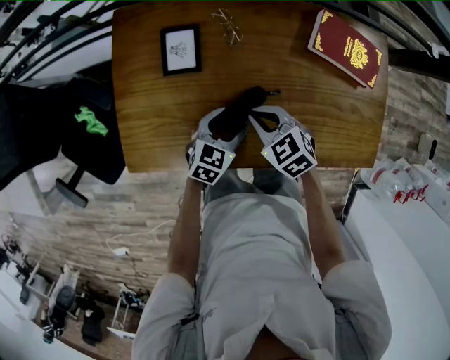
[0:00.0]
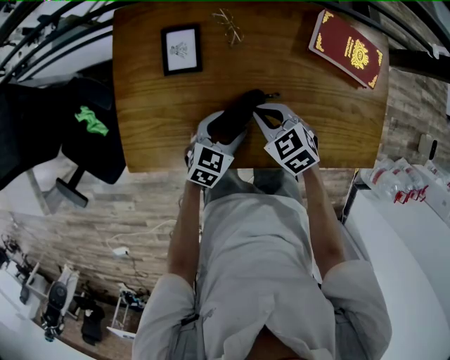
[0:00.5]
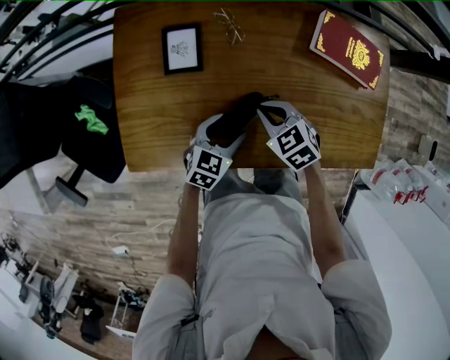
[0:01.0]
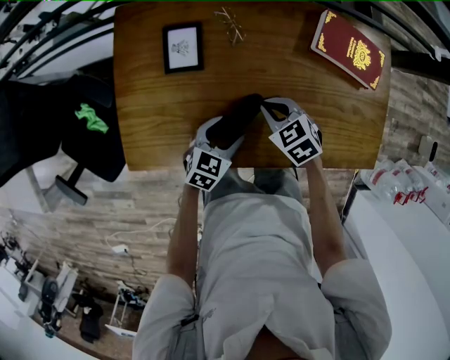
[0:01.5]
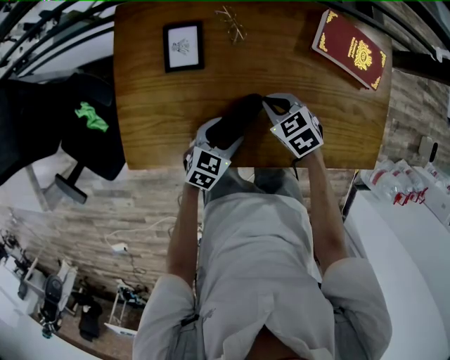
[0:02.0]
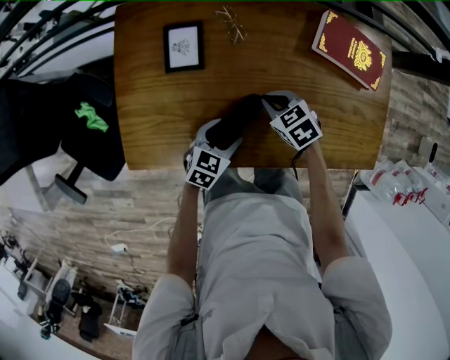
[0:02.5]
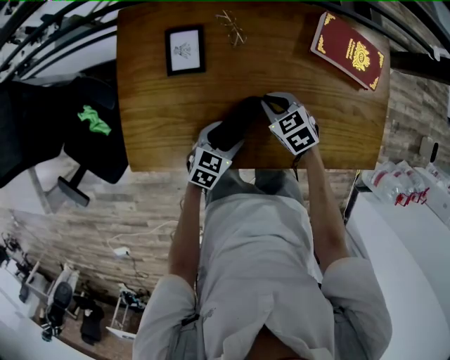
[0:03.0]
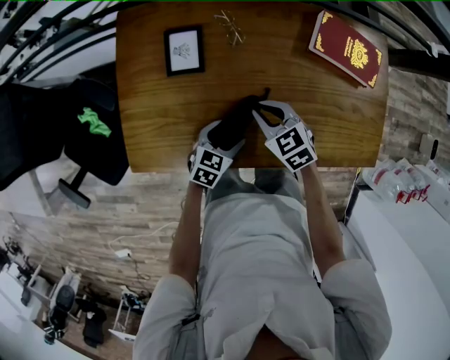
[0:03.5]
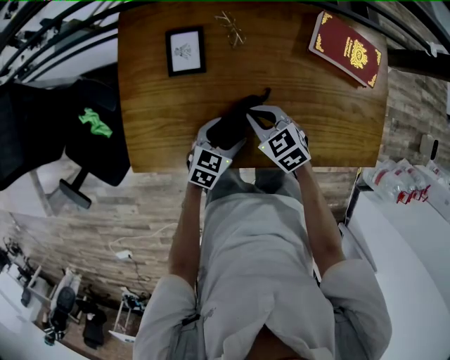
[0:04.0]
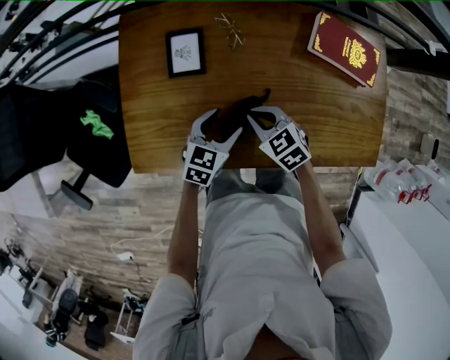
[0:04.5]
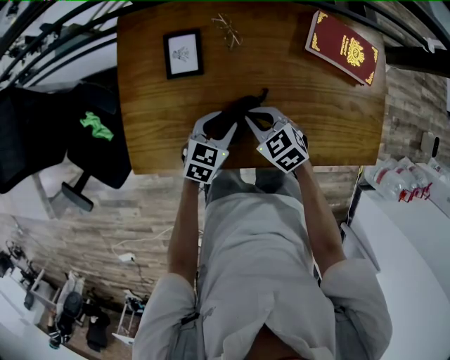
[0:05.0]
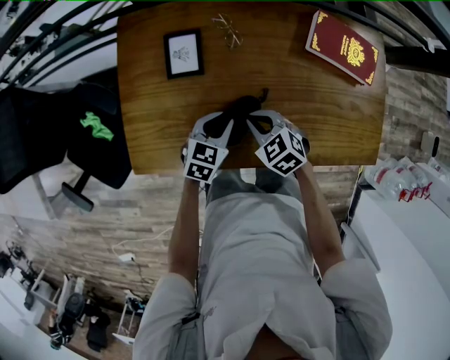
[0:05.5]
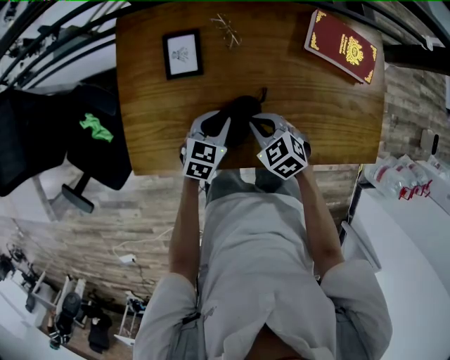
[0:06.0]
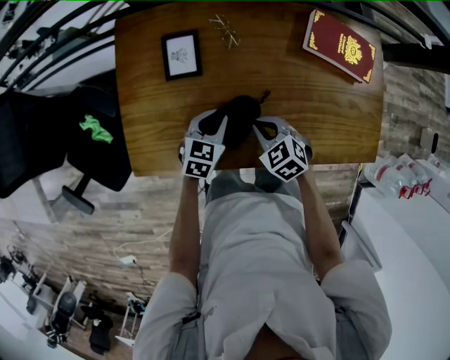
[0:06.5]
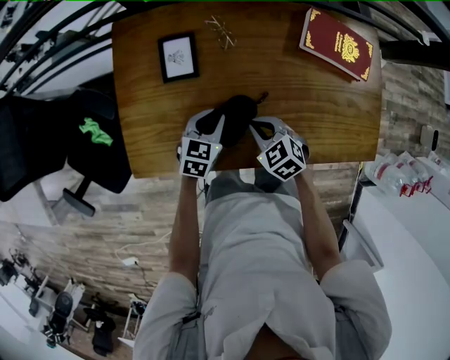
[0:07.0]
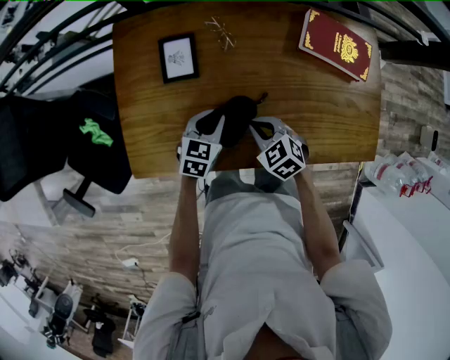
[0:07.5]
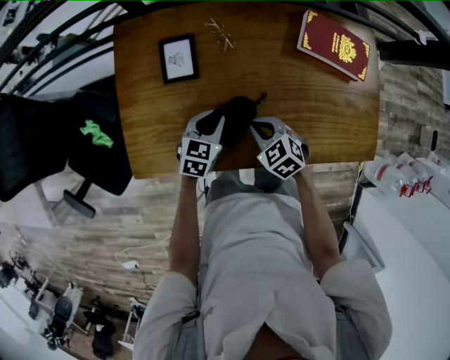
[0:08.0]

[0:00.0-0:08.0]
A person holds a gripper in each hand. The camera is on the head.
0:00.0 to 0:02.0: The right gripper changes place by roughly 5 cm.
0:02.0 to 0:04.0: The right gripper shifts some 5 cm to the left.
0:04.0 to 0:06.0: The left gripper shifts by some 5 cm, and closes up.
0:06.0 to 0:08.0: There are only small adjustments of the grippers.

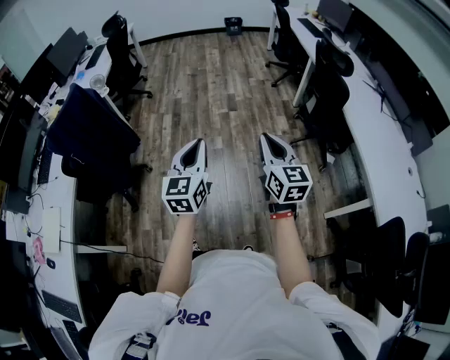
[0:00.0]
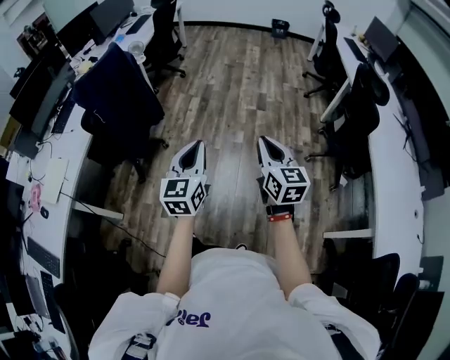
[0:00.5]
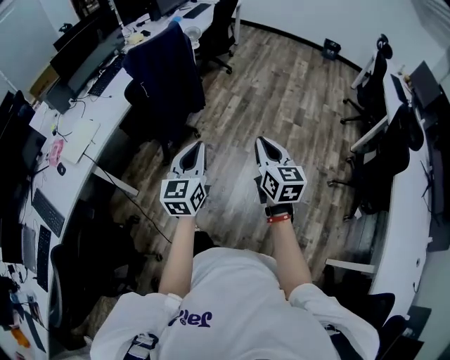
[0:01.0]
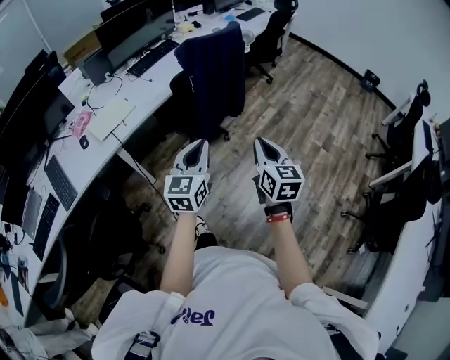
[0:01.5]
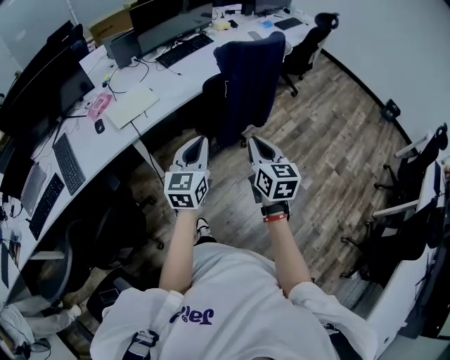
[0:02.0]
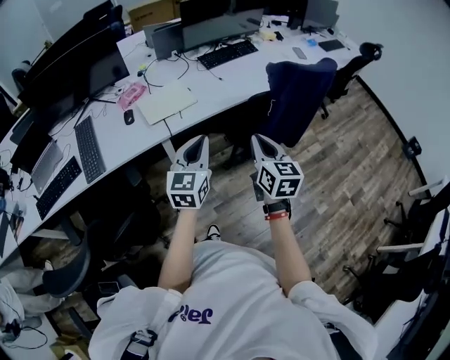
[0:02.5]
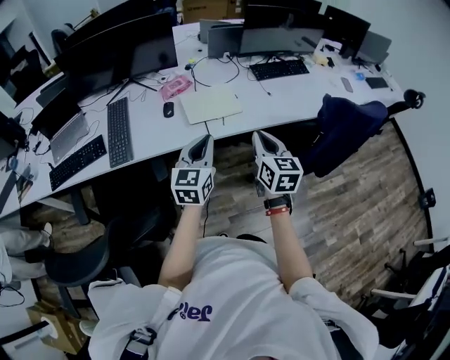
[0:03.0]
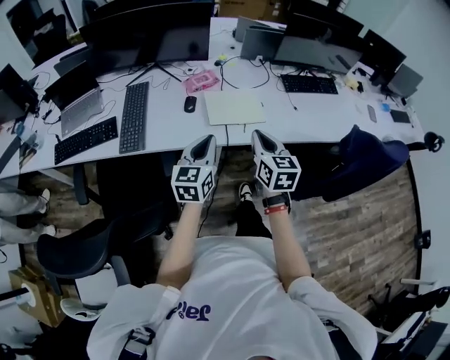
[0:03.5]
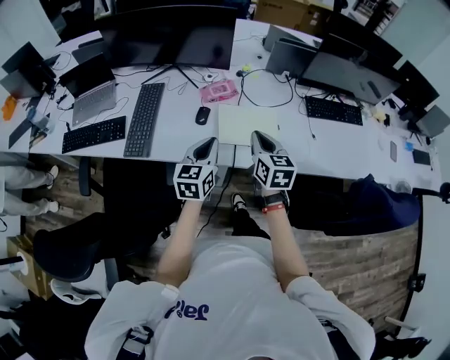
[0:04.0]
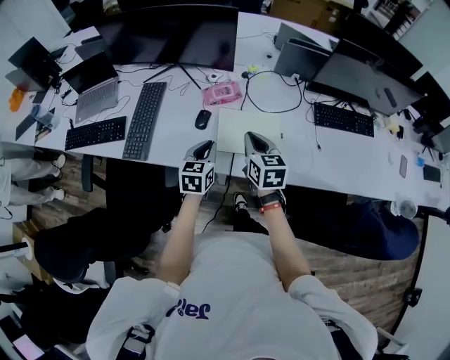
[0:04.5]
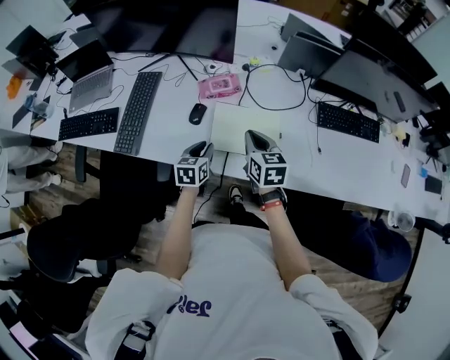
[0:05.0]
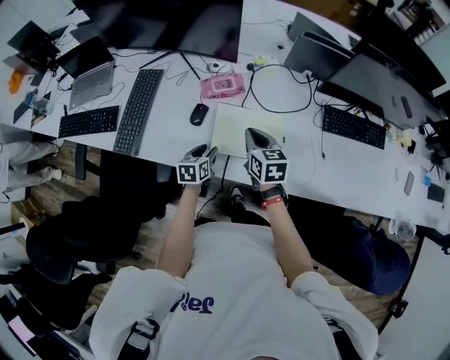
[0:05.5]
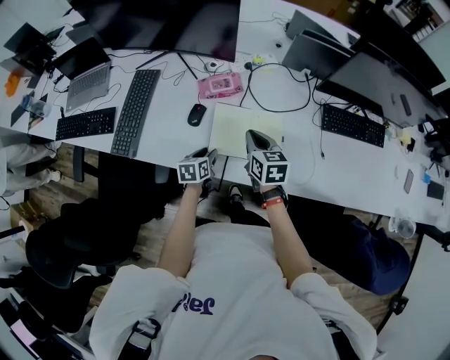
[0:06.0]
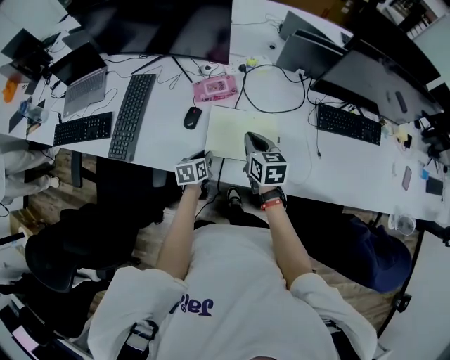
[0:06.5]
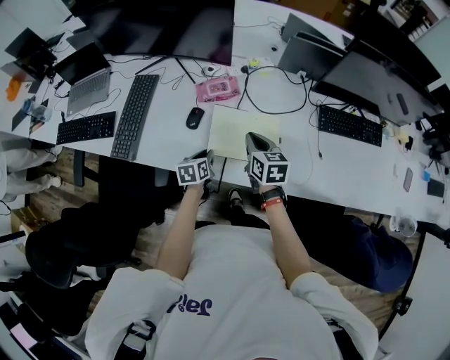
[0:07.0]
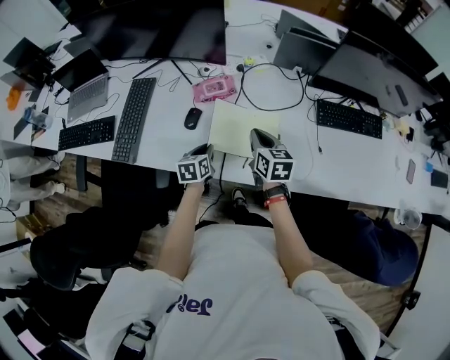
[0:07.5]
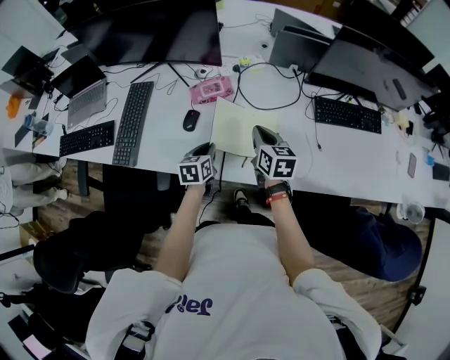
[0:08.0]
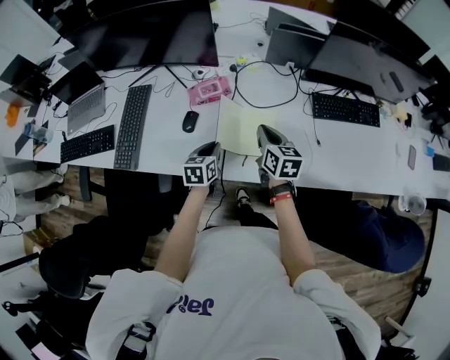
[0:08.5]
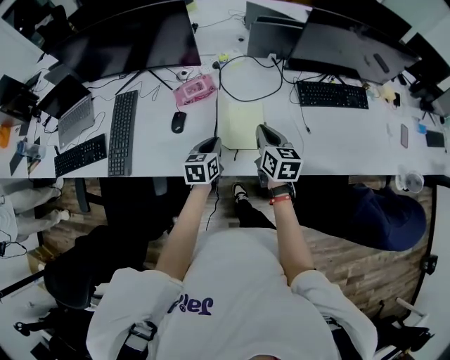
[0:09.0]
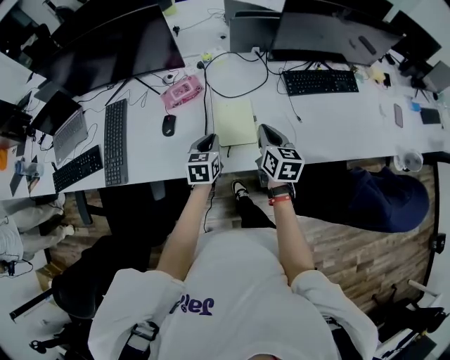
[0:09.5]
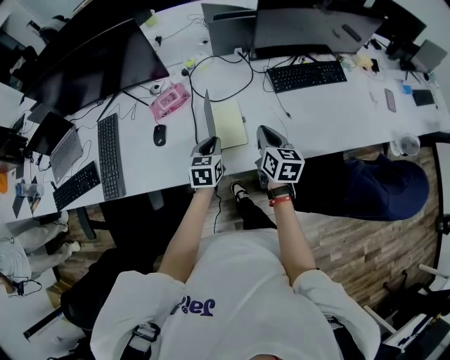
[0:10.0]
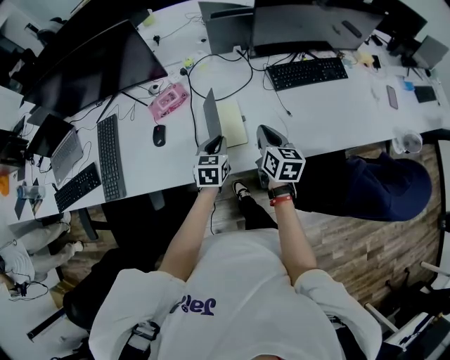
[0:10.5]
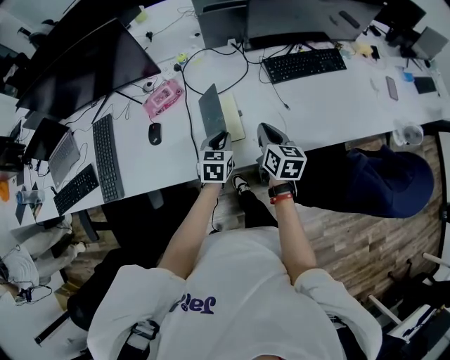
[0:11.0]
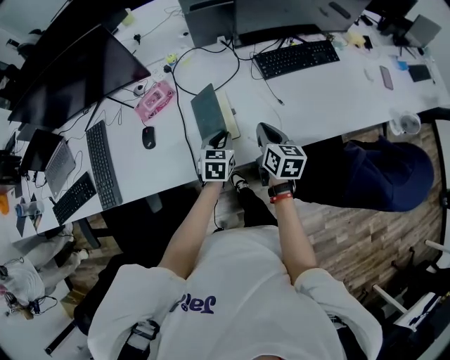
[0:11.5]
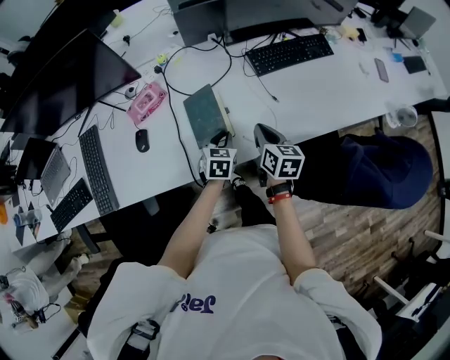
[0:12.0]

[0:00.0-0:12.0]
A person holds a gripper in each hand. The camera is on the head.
0:00.0 to 0:02.0: Both grippers are carried some 60 cm. The right gripper rotates approximately 50 degrees. Meanwhile the left gripper swivels roughly 50 degrees.
0:02.0 to 0:04.0: The pair of grippers is taken about 60 cm. The right gripper changes its angle by about 40 degrees. Meanwhile the left gripper swivels approximately 40 degrees.
0:04.0 to 0:06.0: The left gripper travels downward and forward by about 30 cm, changes its angle by roughly 40 degrees, and opens its fingers. The right gripper shifts about 20 cm forward and downward.
0:06.0 to 0:08.0: The left gripper travels upward by roughly 5 cm, and closes up. Meanwhile the right gripper goes about 5 cm to the right.
0:08.0 to 0:10.0: The right gripper shifts roughly 15 cm to the right and backward, and rotates some 20 degrees; the left gripper travels to the right by roughly 15 cm, and changes its angle by about 20 degrees.
0:10.0 to 0:12.0: The right gripper goes approximately 5 cm downward; the left gripper heads to the right and downward, covering some 10 cm.

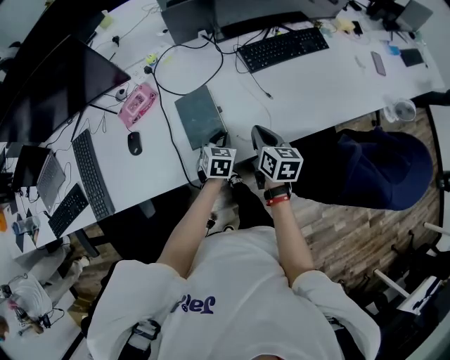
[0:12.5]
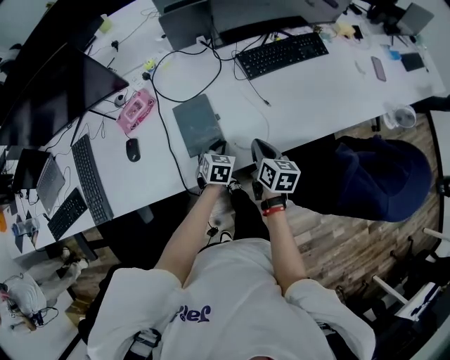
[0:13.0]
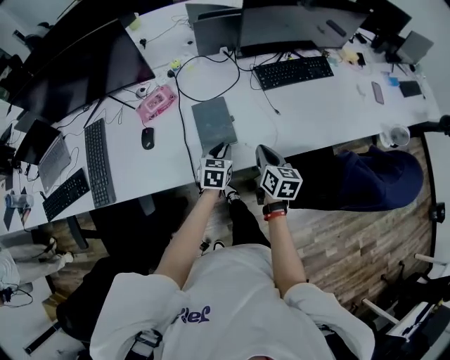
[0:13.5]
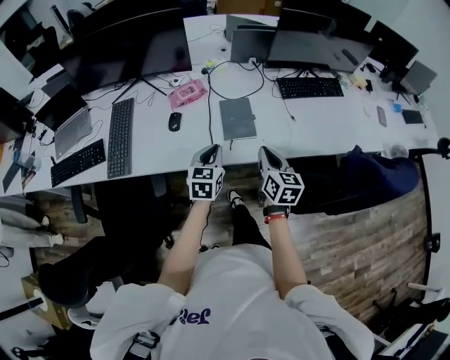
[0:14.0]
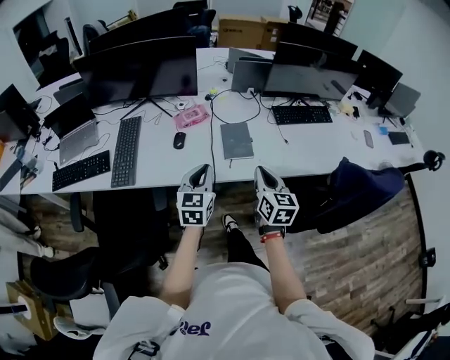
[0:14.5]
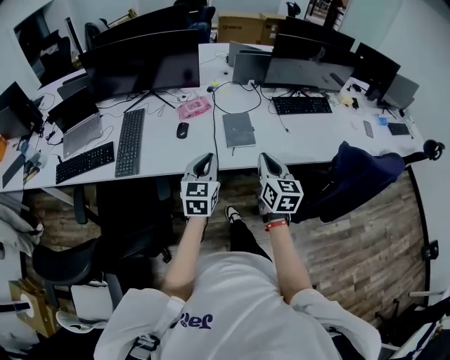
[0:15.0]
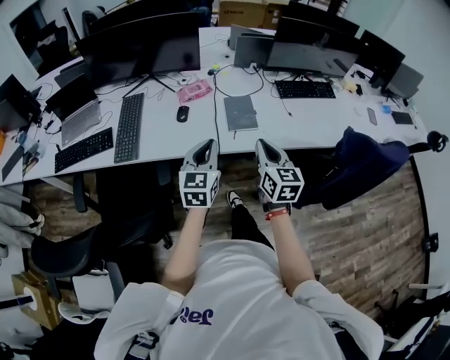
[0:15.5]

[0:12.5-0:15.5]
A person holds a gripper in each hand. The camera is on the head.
0:12.5 to 0:14.0: The right gripper moves backward, to the left and upward, roughly 25 cm; the left gripper travels backward, upward and to the left by roughly 30 cm, and changes its angle by roughly 30 degrees.
0:14.0 to 0:15.5: The two grippers go some 15 cm backward, upward and to the left.

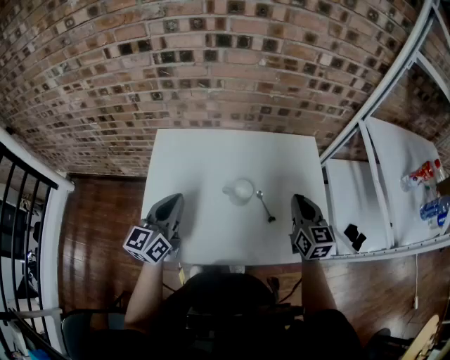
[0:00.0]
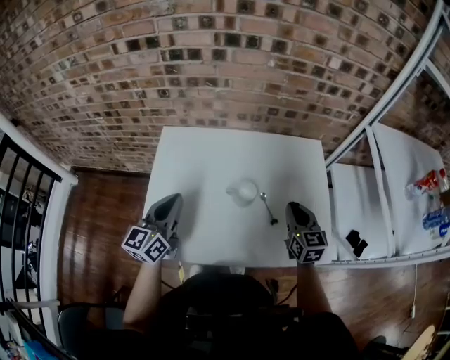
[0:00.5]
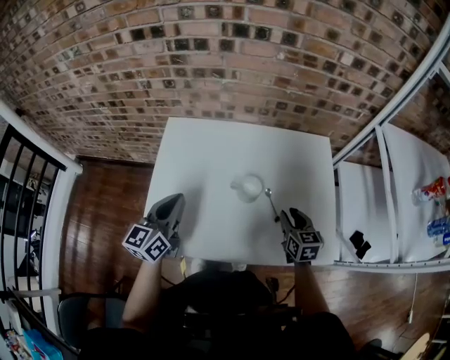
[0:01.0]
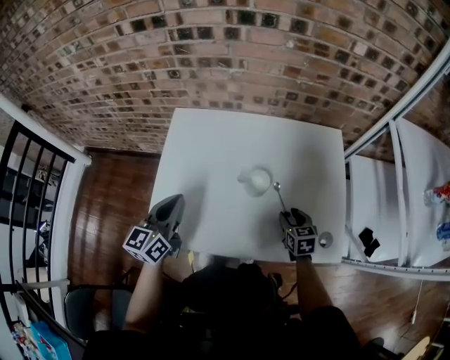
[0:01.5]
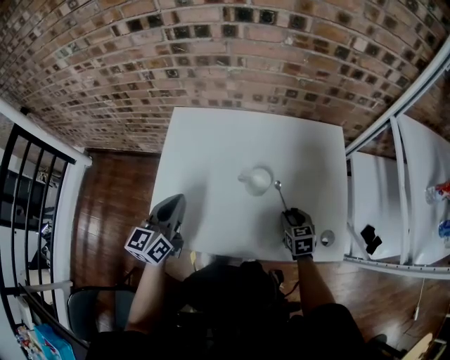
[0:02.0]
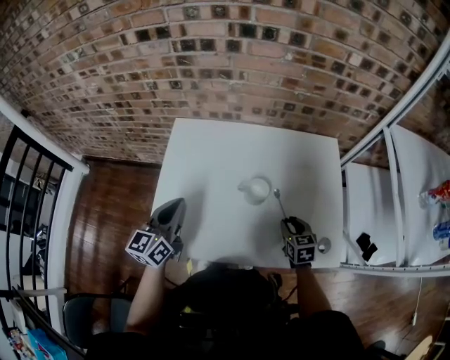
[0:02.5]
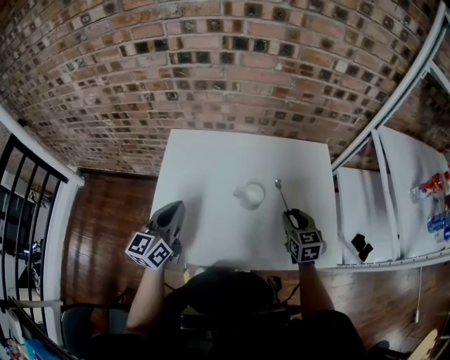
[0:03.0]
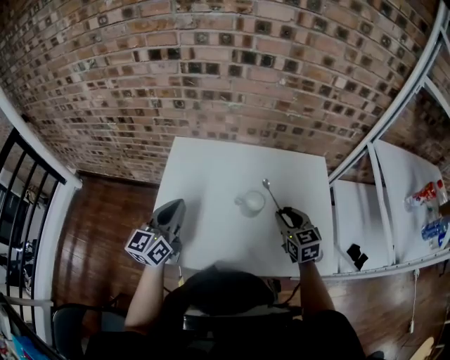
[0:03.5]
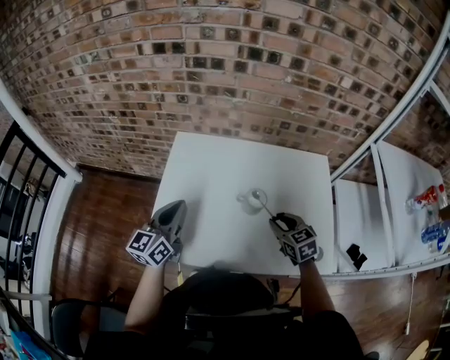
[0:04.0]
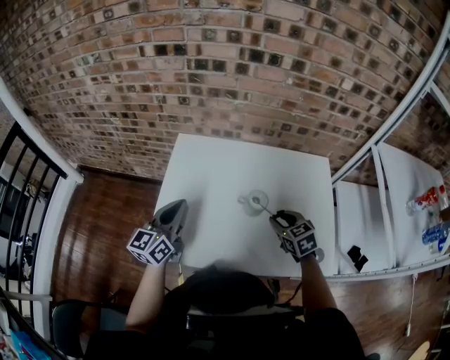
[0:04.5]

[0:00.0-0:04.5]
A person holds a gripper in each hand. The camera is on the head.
0:00.0 to 0:02.0: The left gripper ends up roughly 5 cm from where it was; the right gripper travels downward by approximately 20 cm, tilts its fingers some 30 degrees downward, and opens its fingers.
0:02.0 to 0:04.5: The right gripper shifts about 15 cm upward and to the left.
